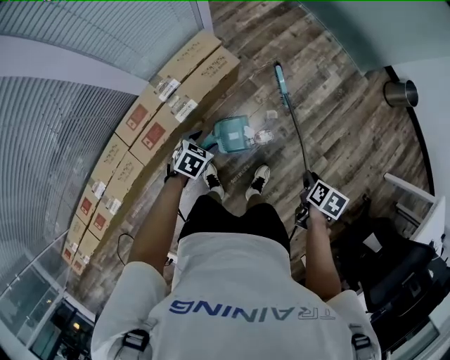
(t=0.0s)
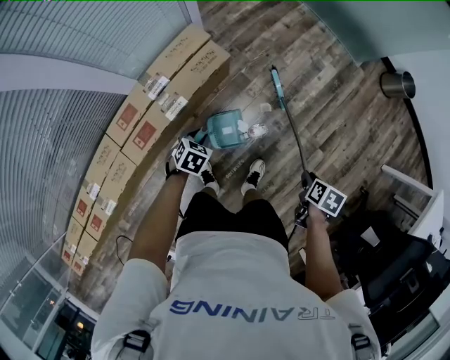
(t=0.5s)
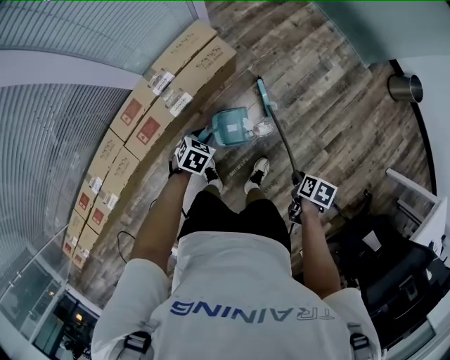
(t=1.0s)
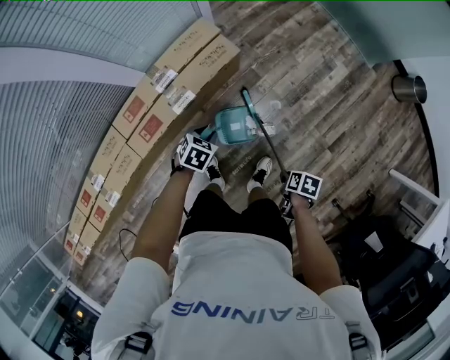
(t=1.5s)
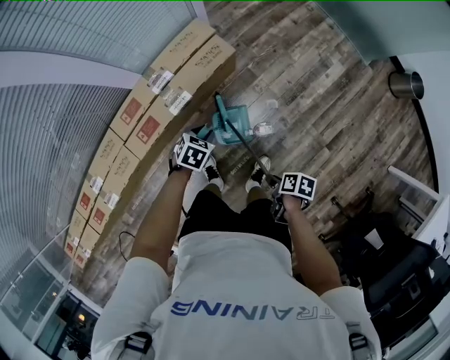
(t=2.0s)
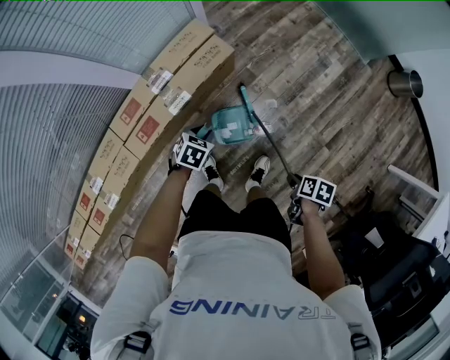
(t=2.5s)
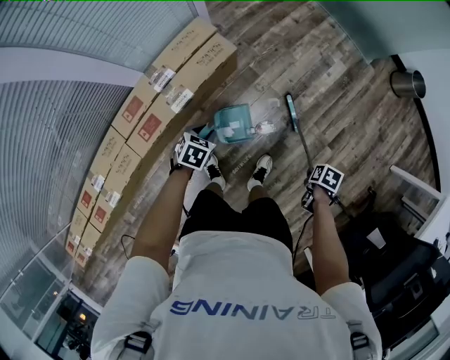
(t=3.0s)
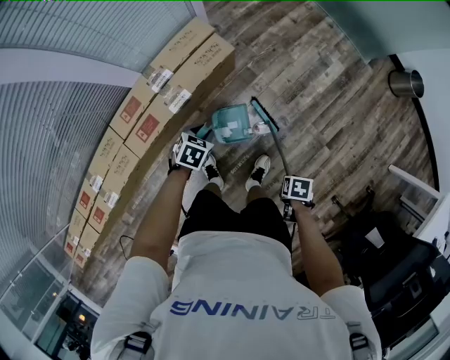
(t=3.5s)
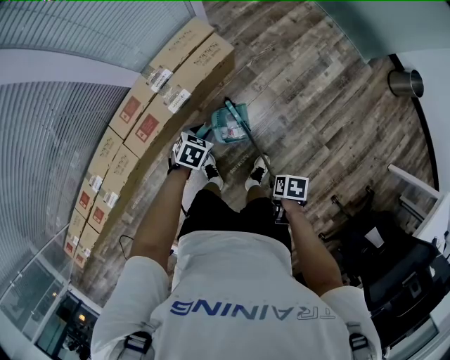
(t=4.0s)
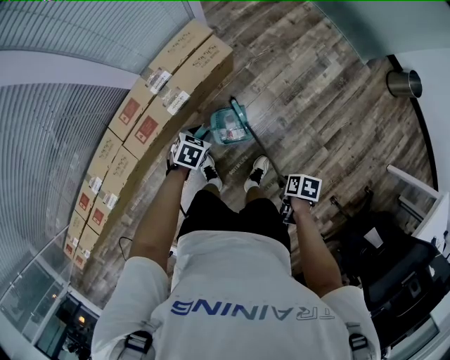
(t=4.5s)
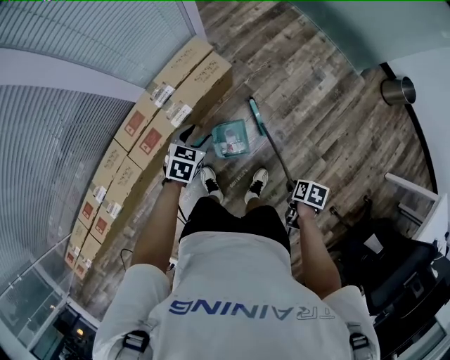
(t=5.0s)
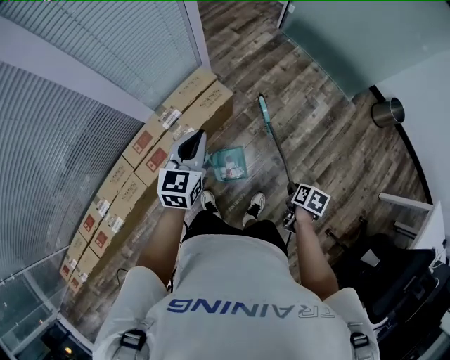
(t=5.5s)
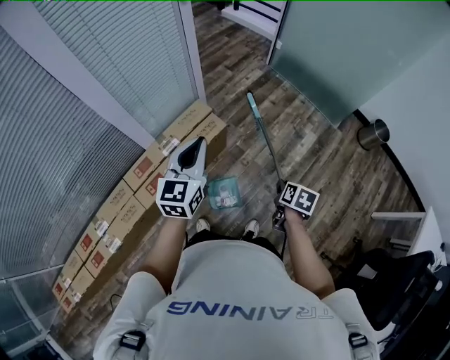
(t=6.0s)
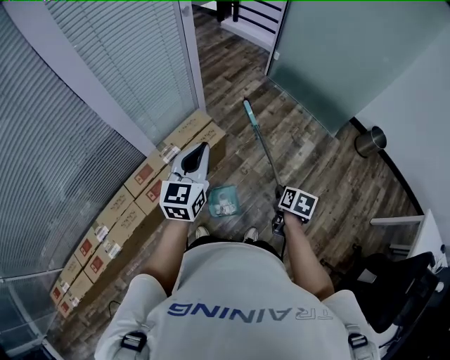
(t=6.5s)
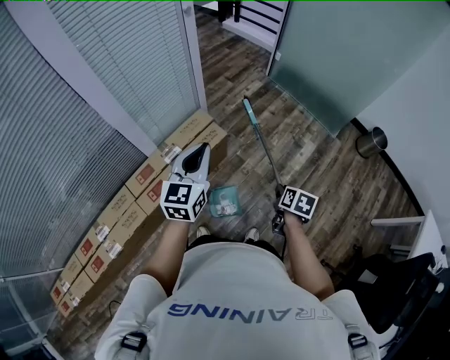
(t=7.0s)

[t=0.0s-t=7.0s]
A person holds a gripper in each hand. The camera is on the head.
t=0.0s to t=2.0s: The left gripper closes its fingers; the right gripper moves about 15 cm, and changes its angle by about 30 degrees.
t=2.0s to t=3.5s: The right gripper changes its angle by some 30 degrees.
t=3.5s to t=5.0s: The right gripper moves roughly 5 cm, and changes its angle by roughly 20 degrees. The left gripper shifts approximately 10 cm upward, and opens up.
t=5.0s to t=7.0s: The right gripper goes about 20 cm upward, and changes its angle by approximately 30 degrees; the left gripper travels upward by approximately 30 cm, tips its fingers upward by roughly 40 degrees, and closes its fingers.

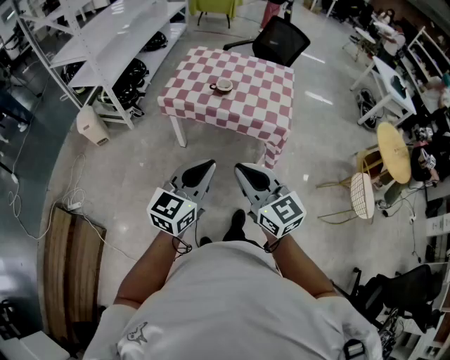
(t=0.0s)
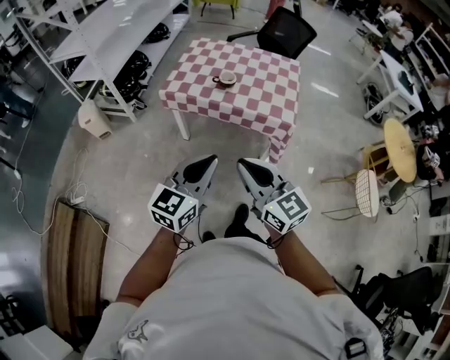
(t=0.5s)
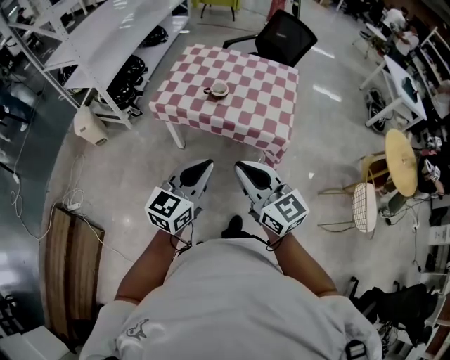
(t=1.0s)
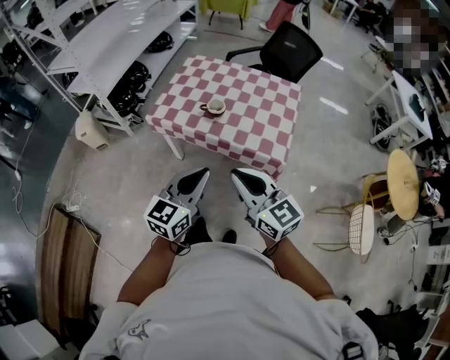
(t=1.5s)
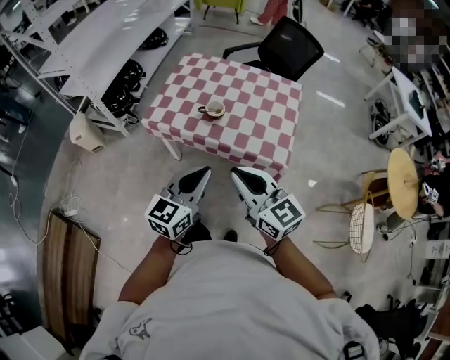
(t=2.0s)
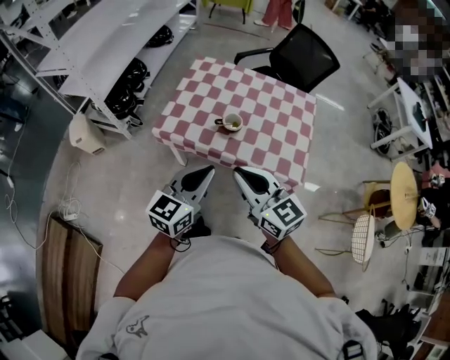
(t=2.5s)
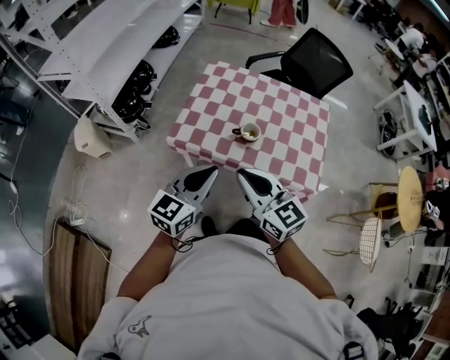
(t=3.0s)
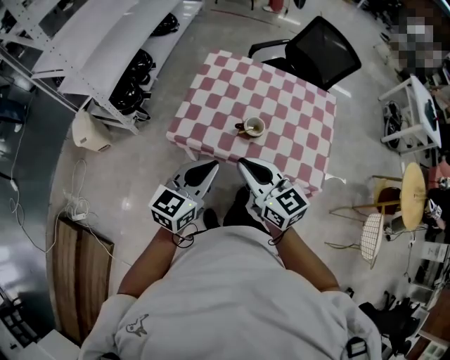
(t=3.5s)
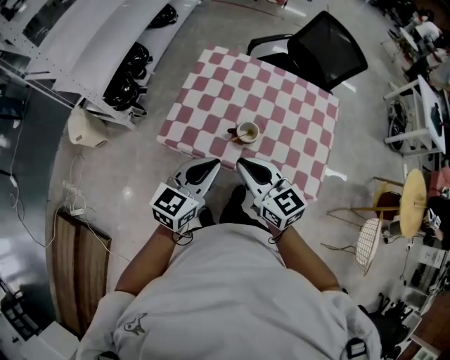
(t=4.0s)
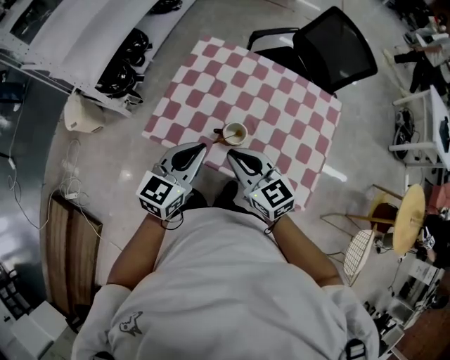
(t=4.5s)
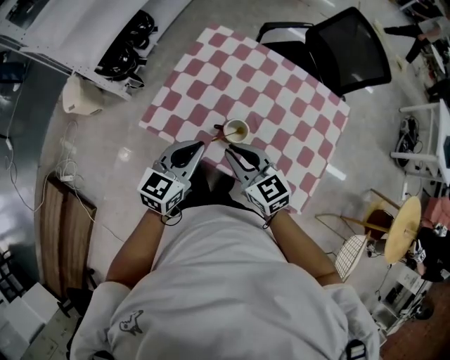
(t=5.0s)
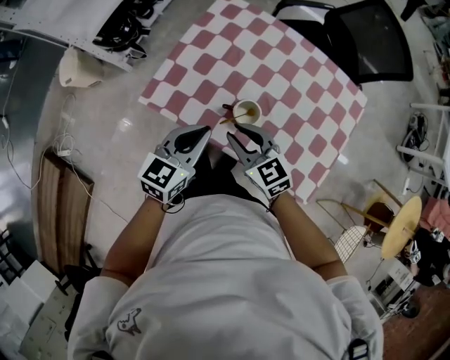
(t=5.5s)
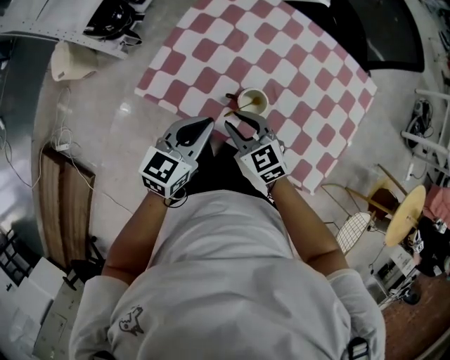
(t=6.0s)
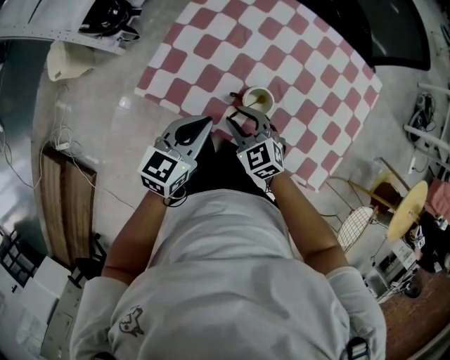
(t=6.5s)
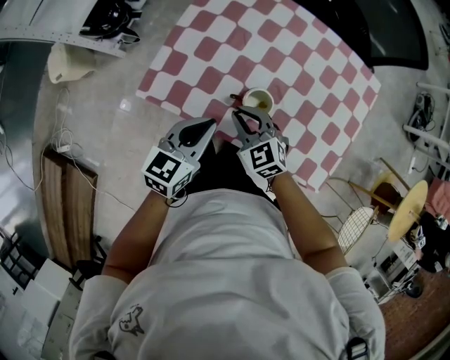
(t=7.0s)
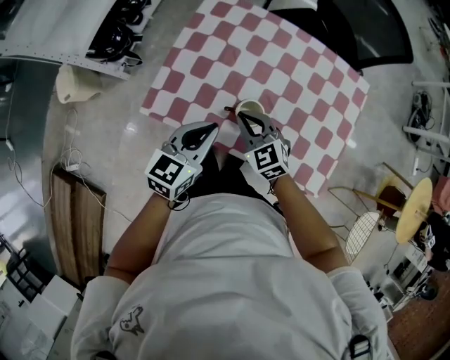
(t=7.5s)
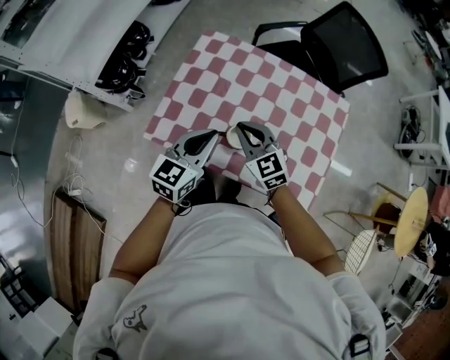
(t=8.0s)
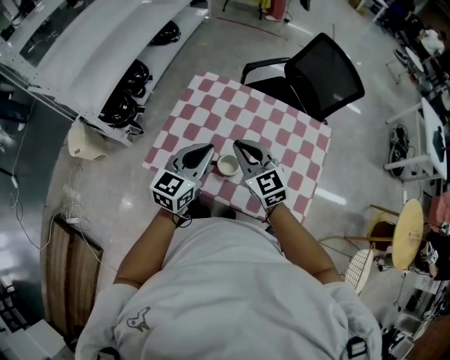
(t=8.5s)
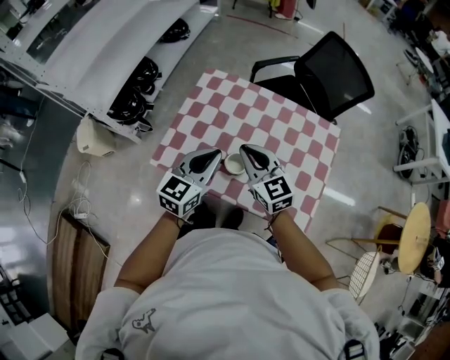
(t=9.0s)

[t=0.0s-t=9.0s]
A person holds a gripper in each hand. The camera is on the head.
t=0.0s to t=2.0s: The grippers both shift forward by roughly 25 cm.
t=2.0s to t=4.5s: The grippers both shift forward by about 30 cm.
t=4.5s to t=7.0s: The two grippers go some 15 cm downward. The right gripper changes its angle by approximately 30 degrees.
t=7.0s to t=9.0s: The left gripper shifts approximately 15 cm upward and to the right; the right gripper is displaced upward by approximately 20 cm, and rotates roughly 30 degrees.

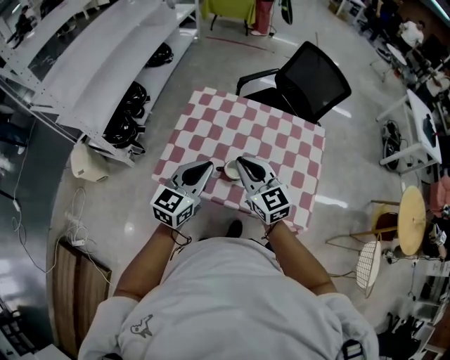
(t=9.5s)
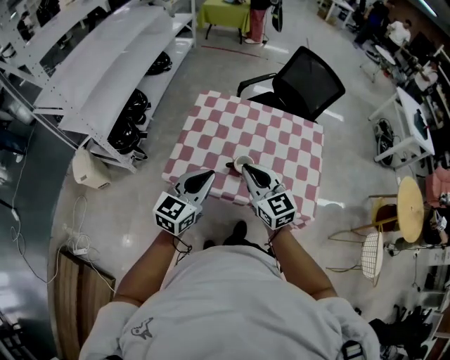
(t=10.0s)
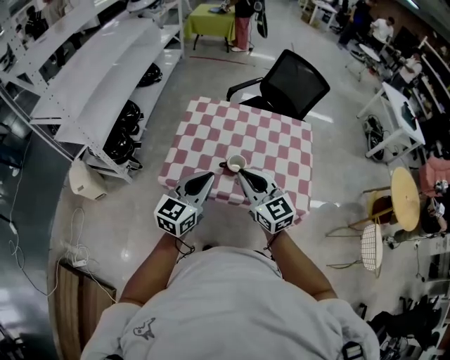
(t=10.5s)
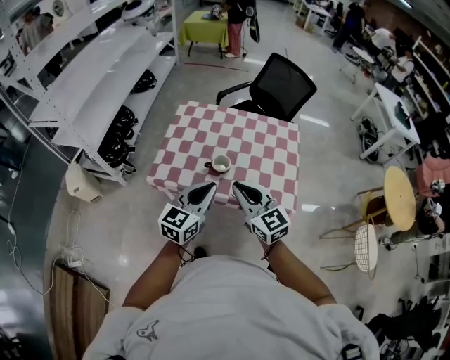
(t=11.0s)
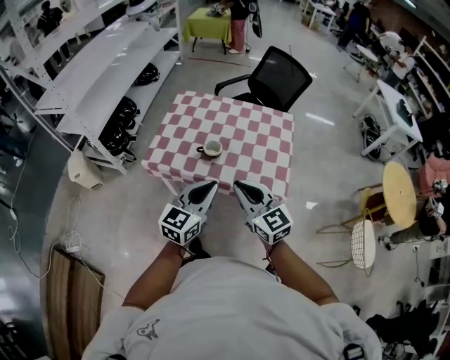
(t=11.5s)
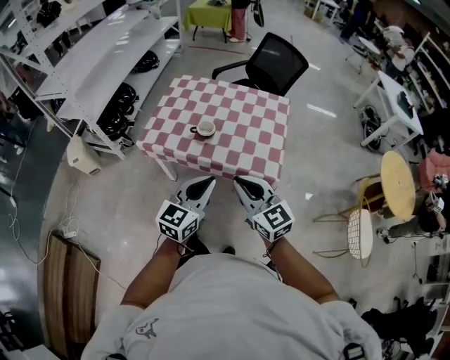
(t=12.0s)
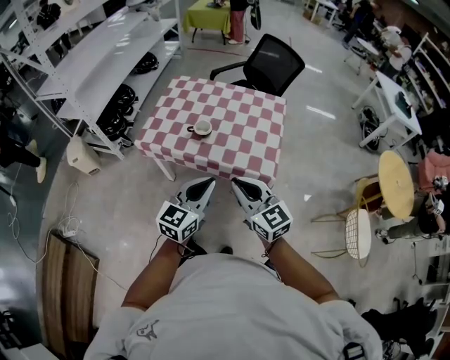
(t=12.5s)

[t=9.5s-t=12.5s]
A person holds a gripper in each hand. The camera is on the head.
t=9.5s to t=11.0s: The grippers both shift backward by some 15 cm.
t=11.0s to t=12.5s: Both grippers travel together backward and to the right, roughly 20 cm.

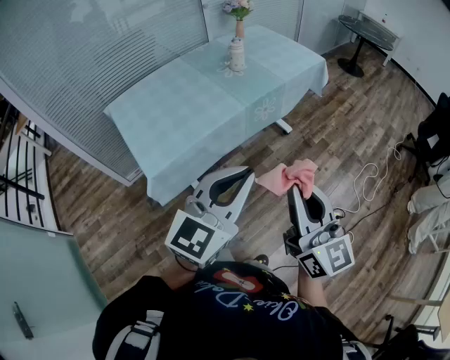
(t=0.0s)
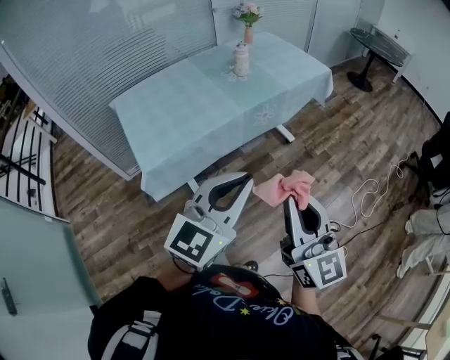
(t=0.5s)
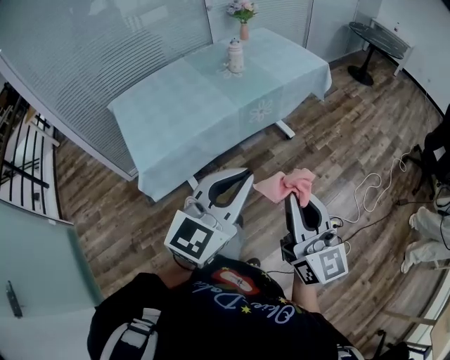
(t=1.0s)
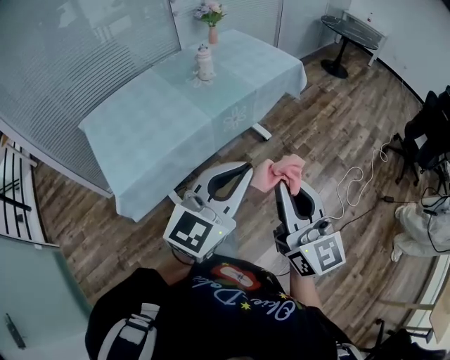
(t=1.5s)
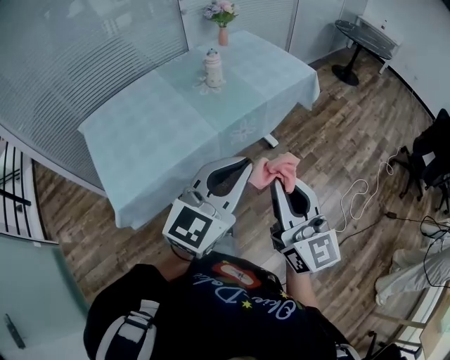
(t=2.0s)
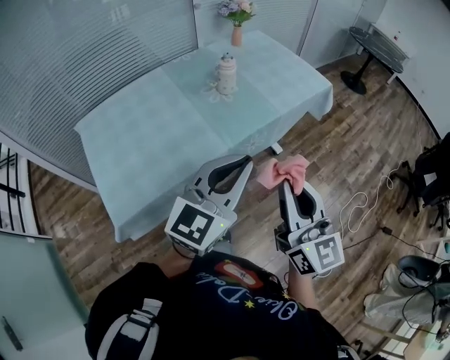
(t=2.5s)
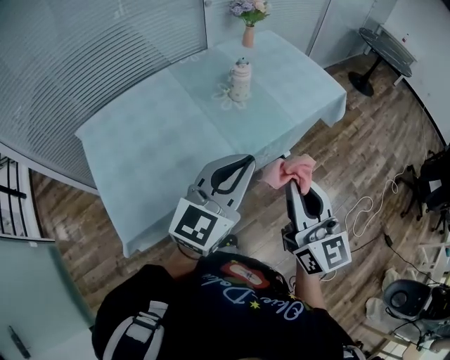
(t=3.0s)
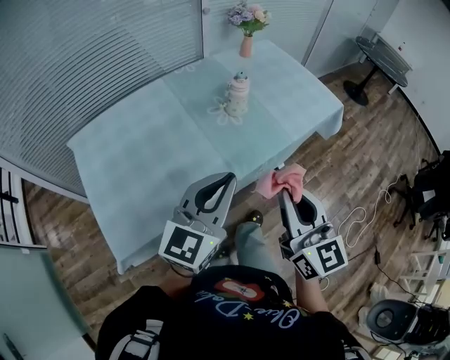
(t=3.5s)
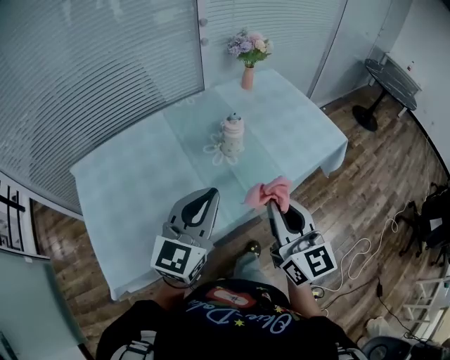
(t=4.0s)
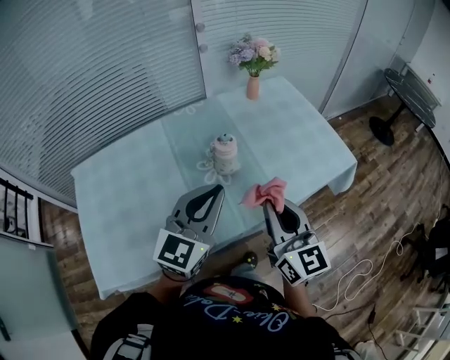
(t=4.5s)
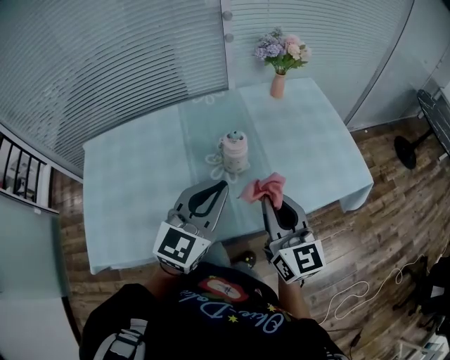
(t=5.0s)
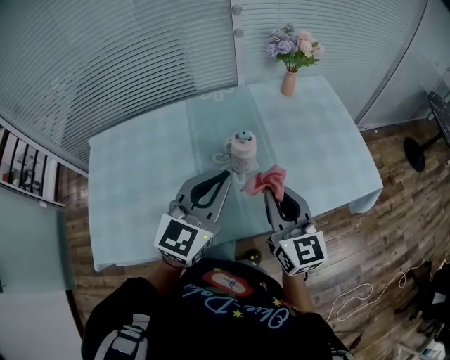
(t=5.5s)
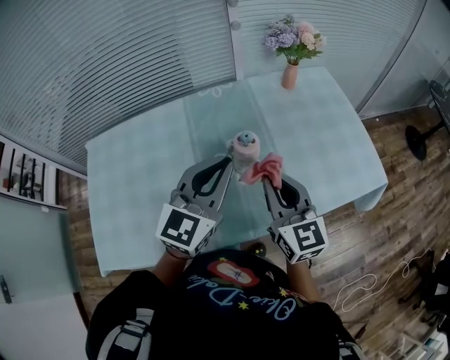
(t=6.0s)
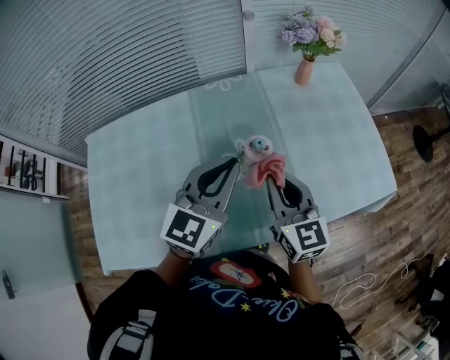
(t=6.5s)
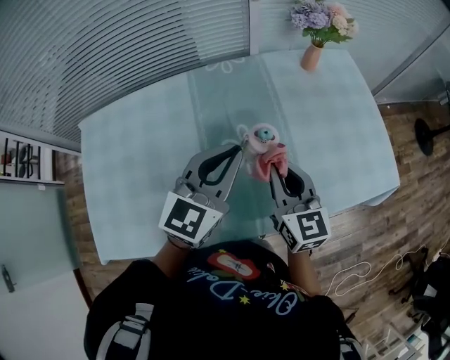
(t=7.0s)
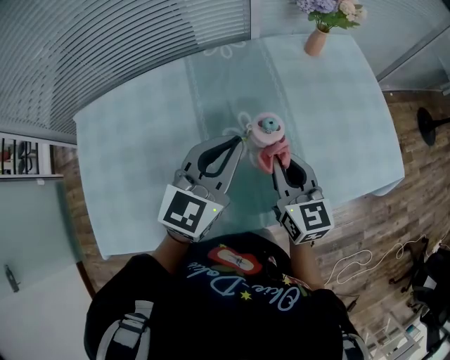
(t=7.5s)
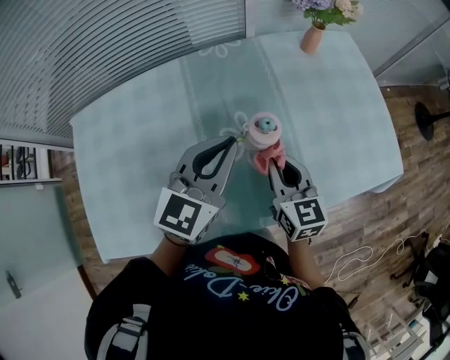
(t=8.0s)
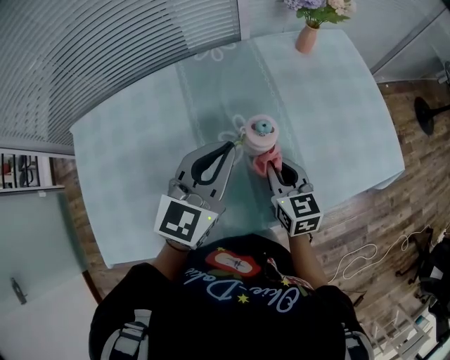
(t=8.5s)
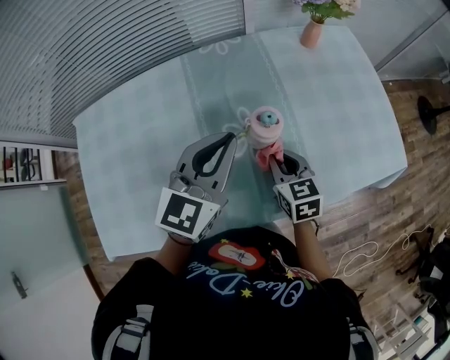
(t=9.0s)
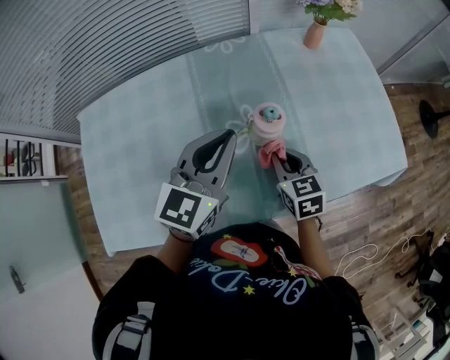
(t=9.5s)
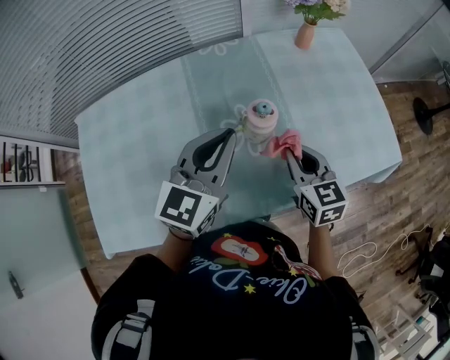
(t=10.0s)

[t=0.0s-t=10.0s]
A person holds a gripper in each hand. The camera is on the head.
t=0.0s to t=2.0s: The left gripper is displaced forward and to the right by some 20 cm. Meanwhile the right gripper goes roughly 15 cm forward.
t=2.0s to t=4.0s: The right gripper moves forward, about 30 cm; the left gripper shifts roughly 35 cm forward and to the left.
t=4.0s to t=6.0s: Both grippers travel together forward, some 20 cm.
t=6.0s to t=8.0s: Both grippers travel together downward and forward, some 10 cm.
